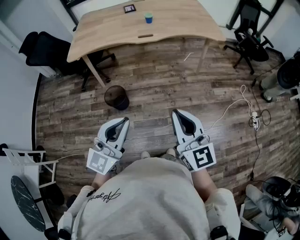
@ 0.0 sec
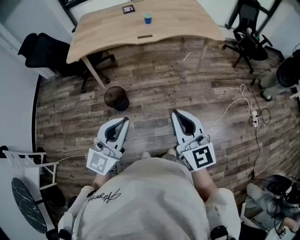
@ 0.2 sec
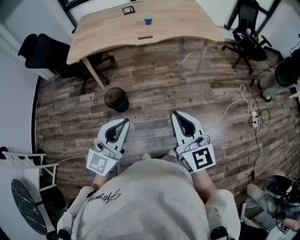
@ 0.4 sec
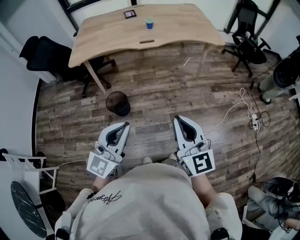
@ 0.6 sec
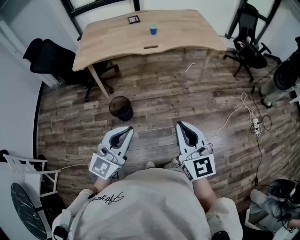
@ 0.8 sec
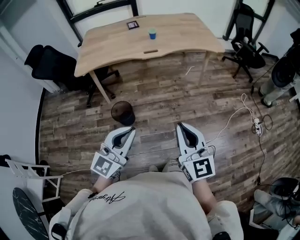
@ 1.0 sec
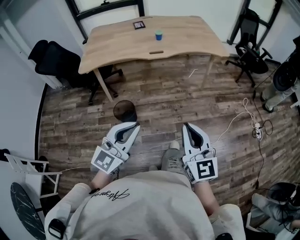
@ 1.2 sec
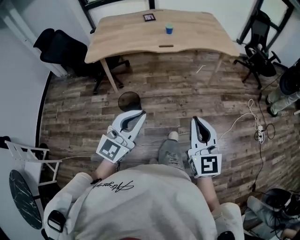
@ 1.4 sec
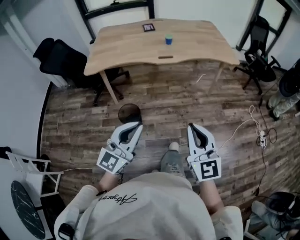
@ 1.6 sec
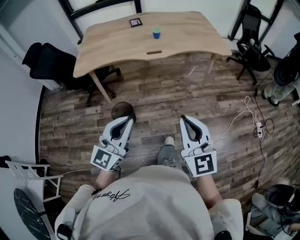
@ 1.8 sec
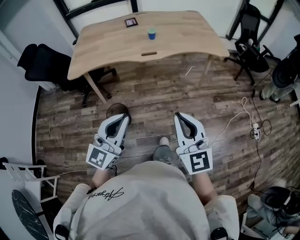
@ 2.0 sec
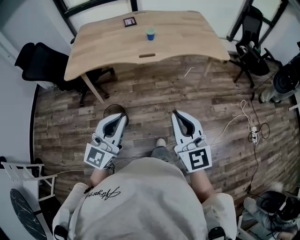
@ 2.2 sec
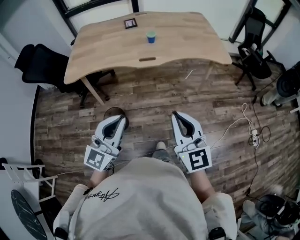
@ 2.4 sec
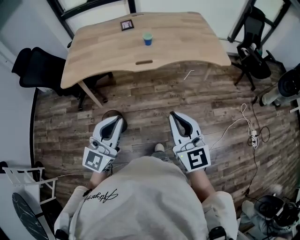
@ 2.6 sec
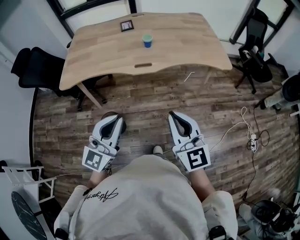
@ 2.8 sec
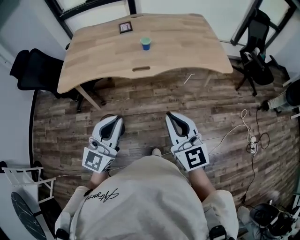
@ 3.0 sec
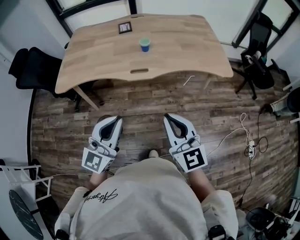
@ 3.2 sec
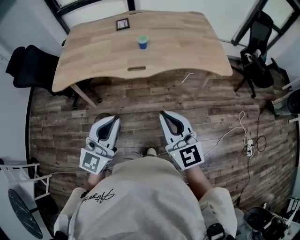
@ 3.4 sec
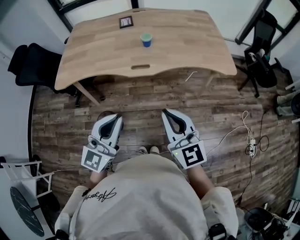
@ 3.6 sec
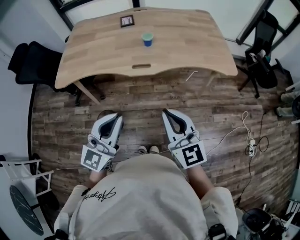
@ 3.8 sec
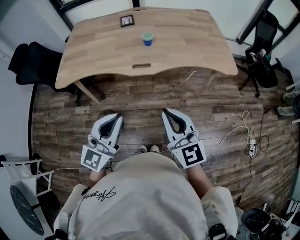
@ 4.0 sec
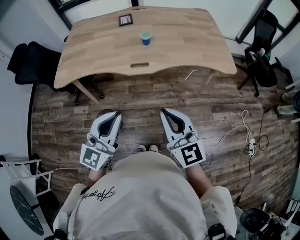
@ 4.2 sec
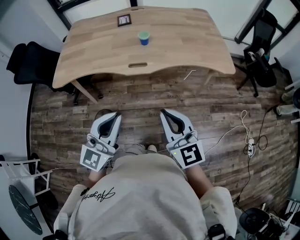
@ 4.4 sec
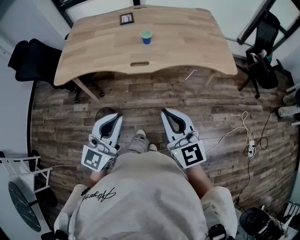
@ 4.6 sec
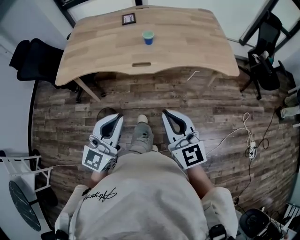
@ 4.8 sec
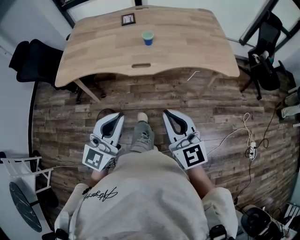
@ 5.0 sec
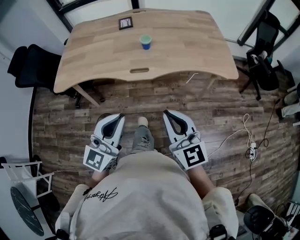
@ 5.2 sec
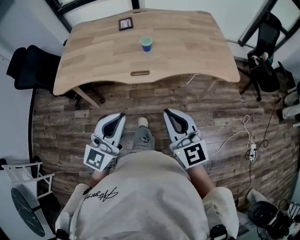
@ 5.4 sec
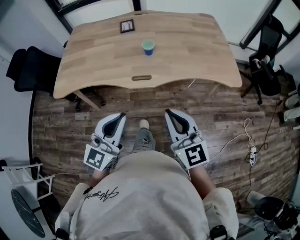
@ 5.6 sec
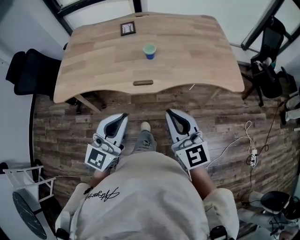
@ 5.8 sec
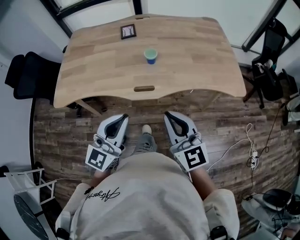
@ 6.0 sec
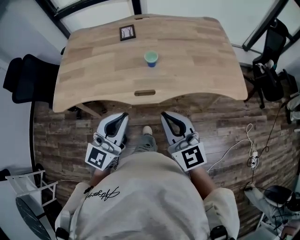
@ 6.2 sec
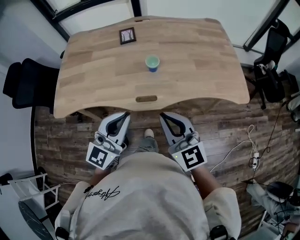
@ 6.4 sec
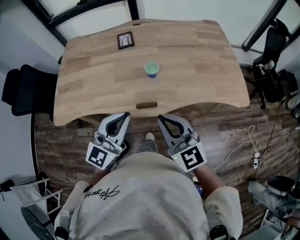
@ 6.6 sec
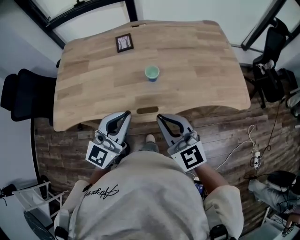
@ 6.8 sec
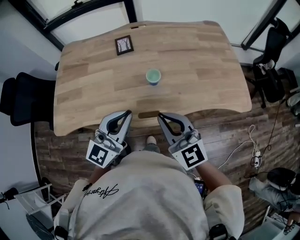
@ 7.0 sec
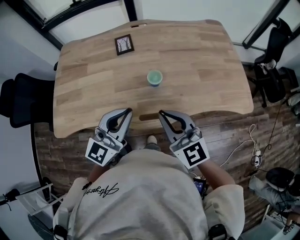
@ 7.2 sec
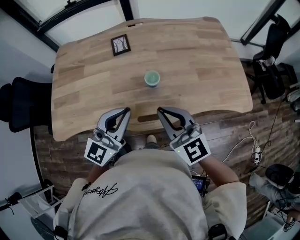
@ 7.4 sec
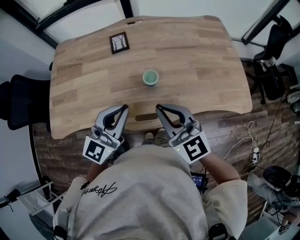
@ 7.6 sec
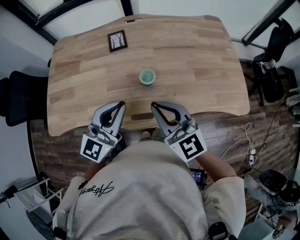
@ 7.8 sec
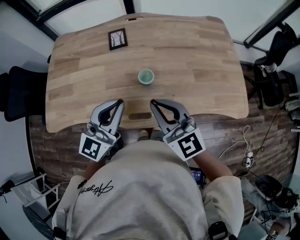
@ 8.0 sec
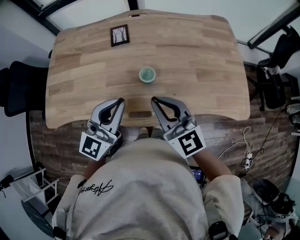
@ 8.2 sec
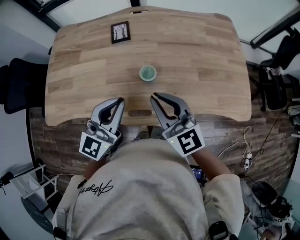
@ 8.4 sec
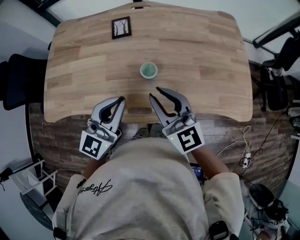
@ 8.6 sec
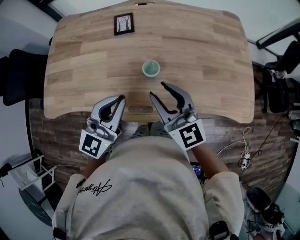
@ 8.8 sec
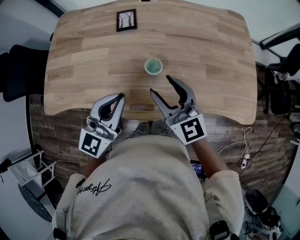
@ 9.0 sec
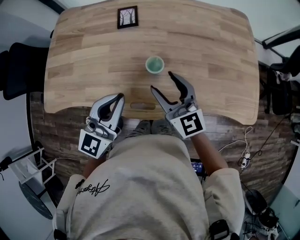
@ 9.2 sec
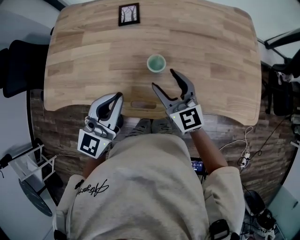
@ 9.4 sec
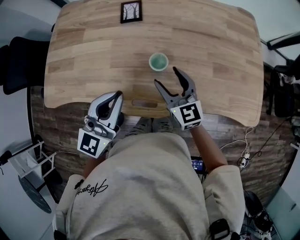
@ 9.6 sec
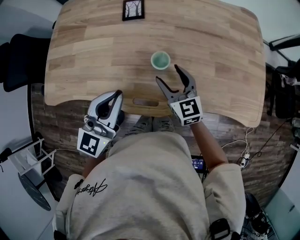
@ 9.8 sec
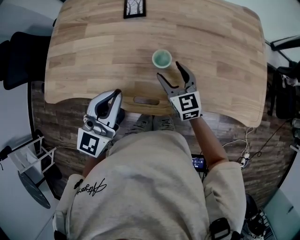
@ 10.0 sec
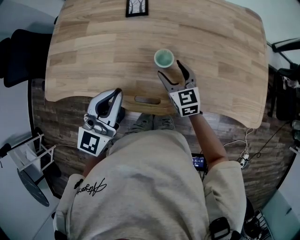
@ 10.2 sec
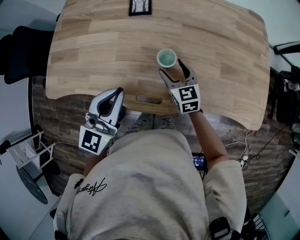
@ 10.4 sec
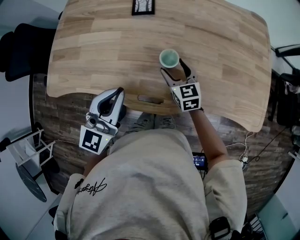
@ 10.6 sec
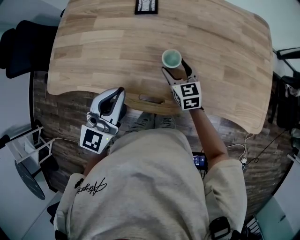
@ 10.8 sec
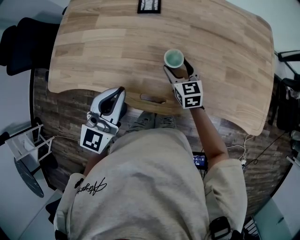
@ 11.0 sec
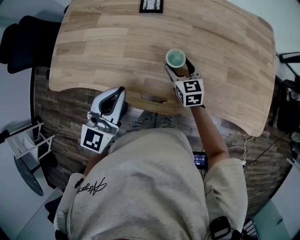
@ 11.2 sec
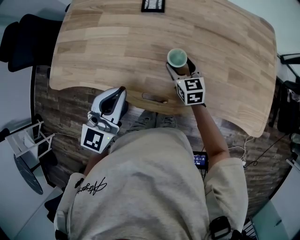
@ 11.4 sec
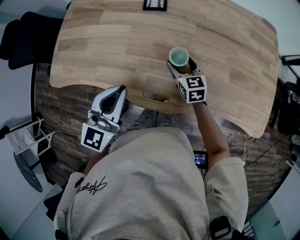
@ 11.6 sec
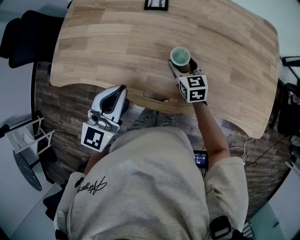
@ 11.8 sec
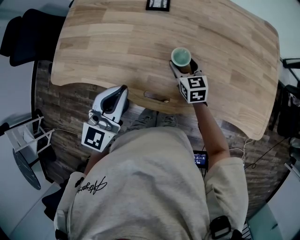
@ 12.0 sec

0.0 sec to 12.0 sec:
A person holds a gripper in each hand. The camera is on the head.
0.0 sec to 1.6 sec: The grippers both shift to the left by about 5 cm.
1.6 sec to 3.0 sec: The grippers both shift forward by roughly 25 cm.
3.0 sec to 4.4 sec: The grippers stay close to where they were, moving slightly.
4.4 sec to 6.0 sec: Both grippers move forward, roughly 15 cm.
6.0 sec to 7.6 sec: The two grippers go roughly 20 cm forward.
7.6 sec to 9.0 sec: The right gripper heads forward and downward, covering roughly 10 cm, and opens its fingers.
9.0 sec to 10.4 sec: The right gripper shifts approximately 20 cm downward and forward, and swivels about 20 degrees.
10.4 sec to 12.0 sec: There are only small adjustments of the grippers.

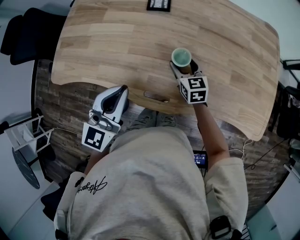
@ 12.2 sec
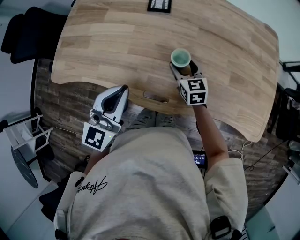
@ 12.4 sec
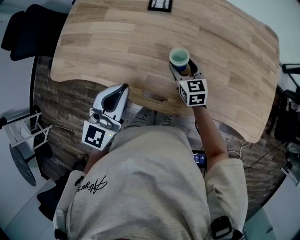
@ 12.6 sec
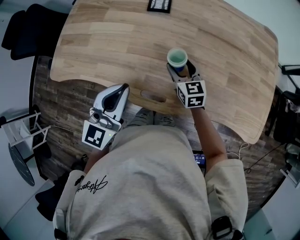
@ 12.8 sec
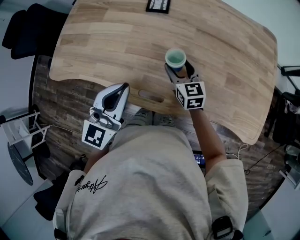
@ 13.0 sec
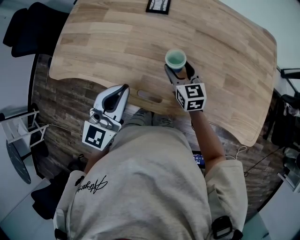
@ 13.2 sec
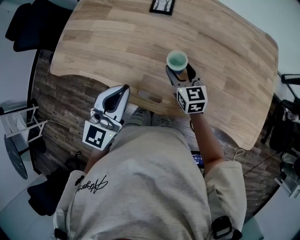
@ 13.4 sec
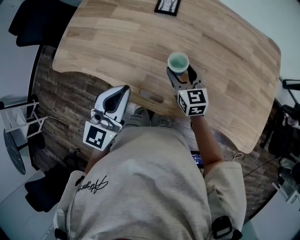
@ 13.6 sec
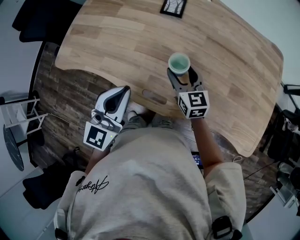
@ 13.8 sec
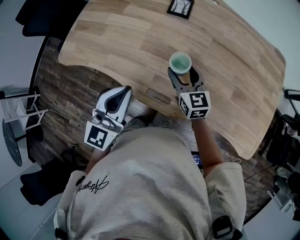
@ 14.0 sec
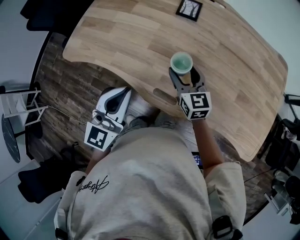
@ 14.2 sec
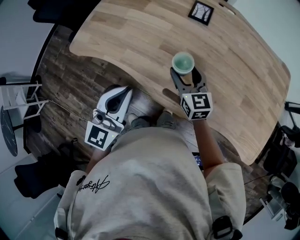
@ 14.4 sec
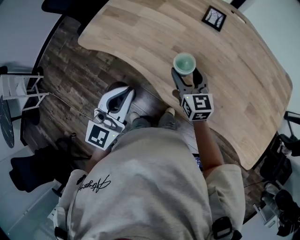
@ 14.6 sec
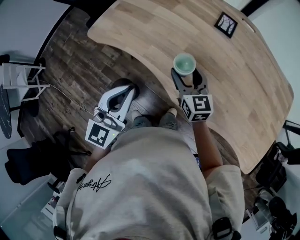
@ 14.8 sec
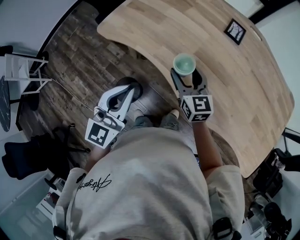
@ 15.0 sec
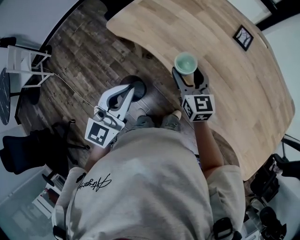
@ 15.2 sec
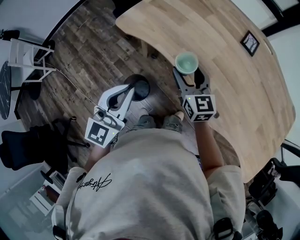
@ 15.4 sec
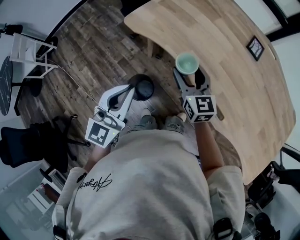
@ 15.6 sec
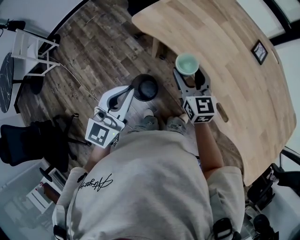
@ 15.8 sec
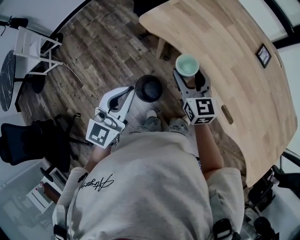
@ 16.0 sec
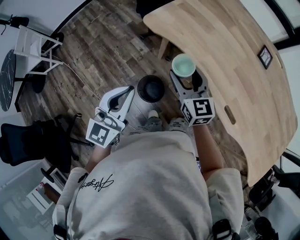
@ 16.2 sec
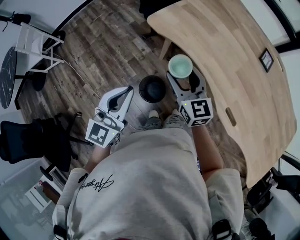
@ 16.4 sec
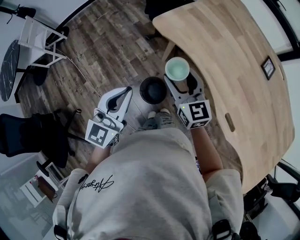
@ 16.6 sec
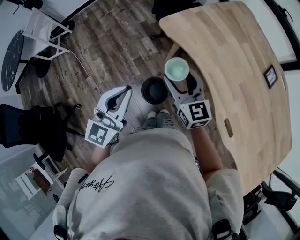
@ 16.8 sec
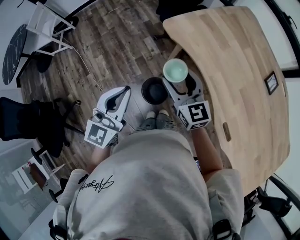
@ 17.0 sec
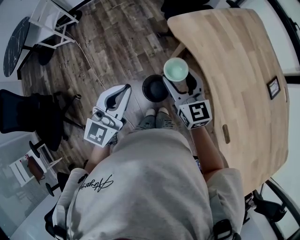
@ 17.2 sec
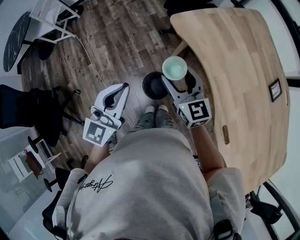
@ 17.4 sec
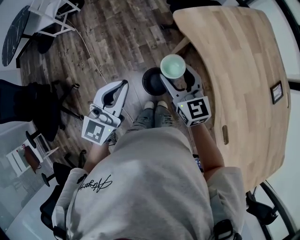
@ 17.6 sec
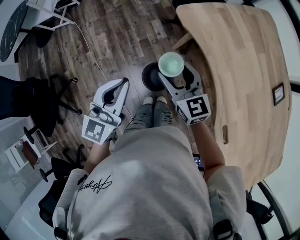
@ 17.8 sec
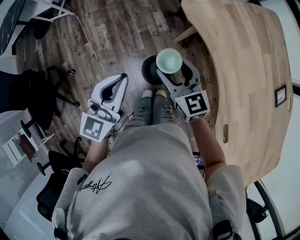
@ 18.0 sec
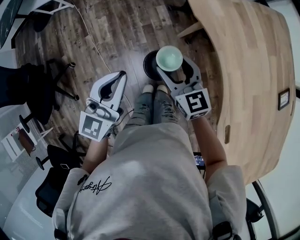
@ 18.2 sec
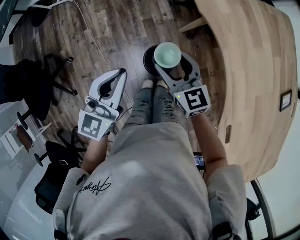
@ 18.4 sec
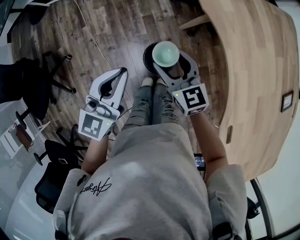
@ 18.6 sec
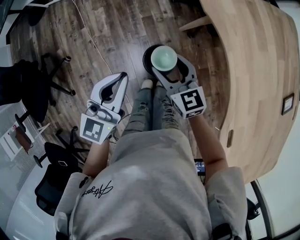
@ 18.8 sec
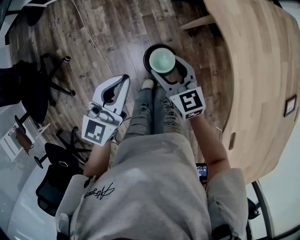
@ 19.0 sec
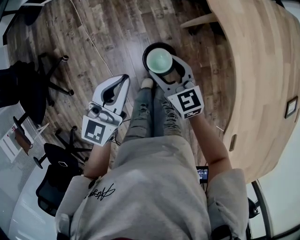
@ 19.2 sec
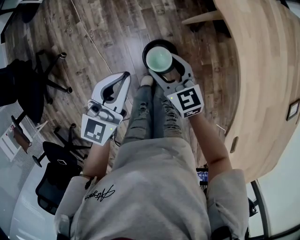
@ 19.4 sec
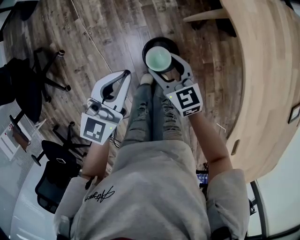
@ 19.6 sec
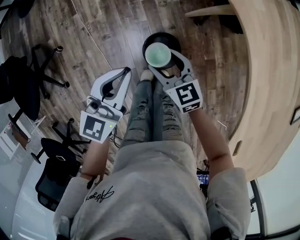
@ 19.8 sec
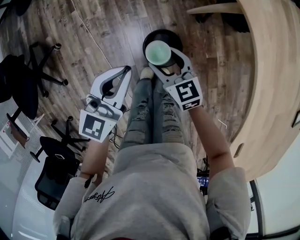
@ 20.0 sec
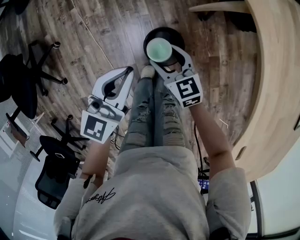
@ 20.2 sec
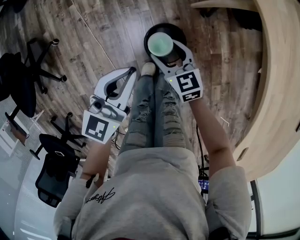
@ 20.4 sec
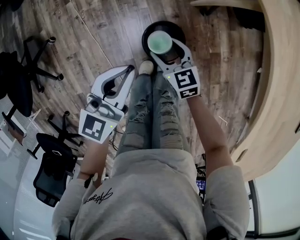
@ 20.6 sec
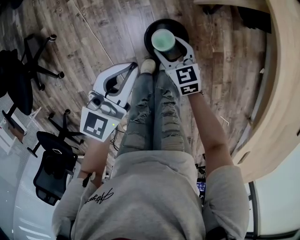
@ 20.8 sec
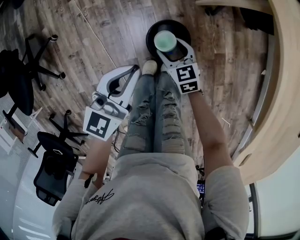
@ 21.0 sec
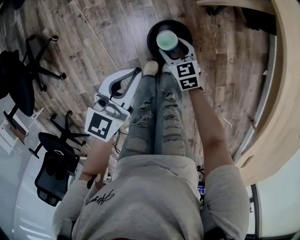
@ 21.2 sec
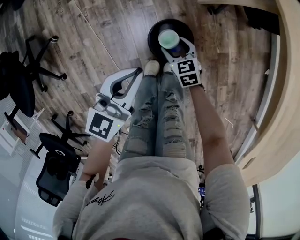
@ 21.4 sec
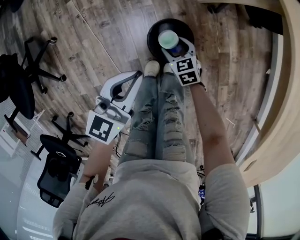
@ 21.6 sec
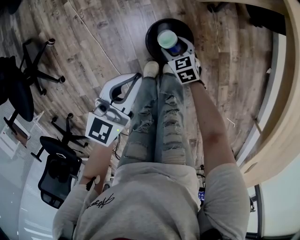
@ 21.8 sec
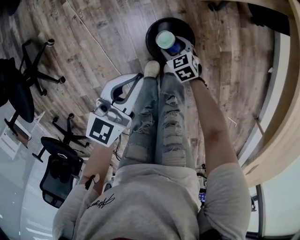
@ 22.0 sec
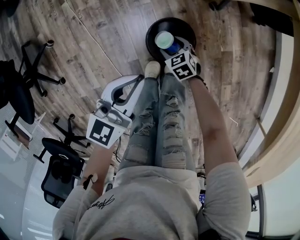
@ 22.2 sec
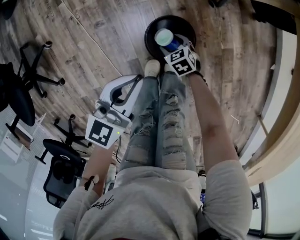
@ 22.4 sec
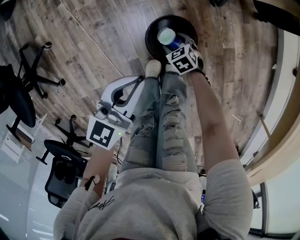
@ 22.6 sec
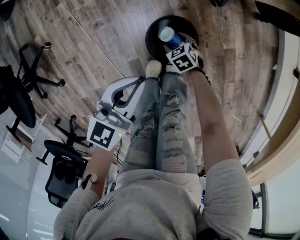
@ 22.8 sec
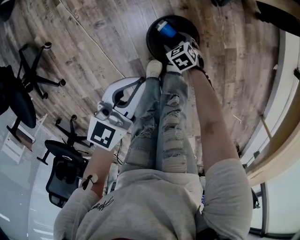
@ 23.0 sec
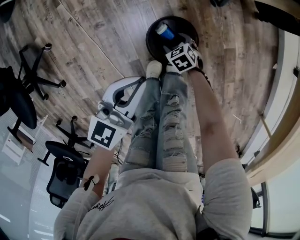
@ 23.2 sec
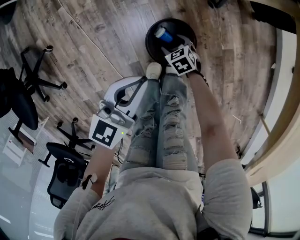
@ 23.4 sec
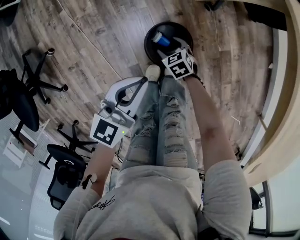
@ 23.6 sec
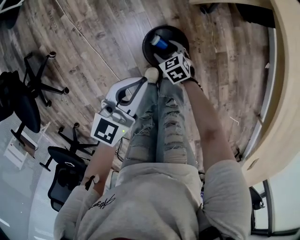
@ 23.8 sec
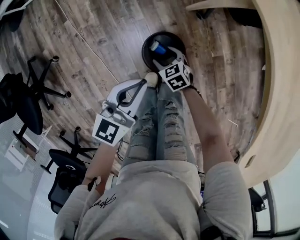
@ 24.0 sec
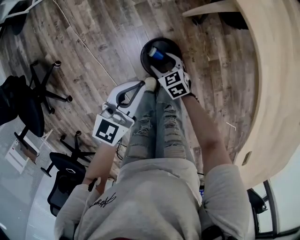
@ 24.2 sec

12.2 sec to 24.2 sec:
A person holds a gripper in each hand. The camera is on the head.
12.2 sec to 13.8 sec: The right gripper moves upward, approximately 5 cm.
13.8 sec to 15.2 sec: Both grippers travel together to the left, about 25 cm.
15.2 sec to 16.6 sec: The grippers both shift to the left by approximately 20 cm.
16.6 sec to 18.2 sec: The right gripper goes some 15 cm to the left and downward, and rotates some 30 degrees; the left gripper moves downward, approximately 5 cm, and rotates some 20 degrees.
18.2 sec to 19.8 sec: The two grippers go some 20 cm downward.
19.8 sec to 21.2 sec: The left gripper is displaced downward by some 10 cm, while the right gripper moves downward, some 20 cm.
21.2 sec to 22.6 sec: The right gripper goes some 15 cm downward, and swivels about 20 degrees, while the left gripper travels downward by some 5 cm.
22.6 sec to 24.2 sec: The left gripper travels upward by about 5 cm. The right gripper shifts some 15 cm upward.
